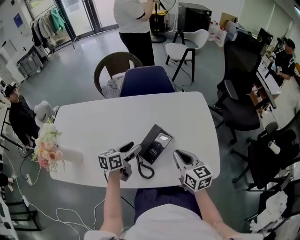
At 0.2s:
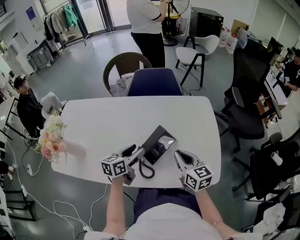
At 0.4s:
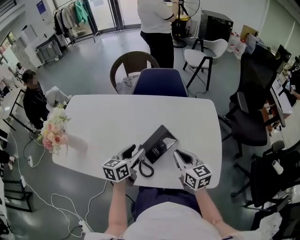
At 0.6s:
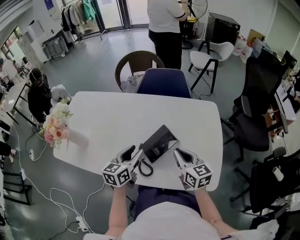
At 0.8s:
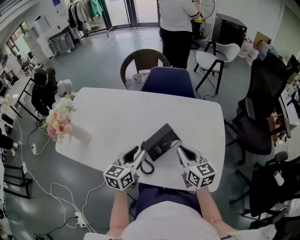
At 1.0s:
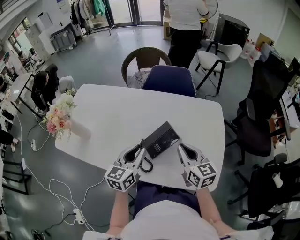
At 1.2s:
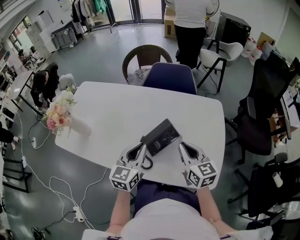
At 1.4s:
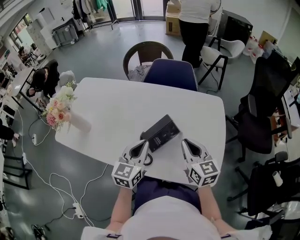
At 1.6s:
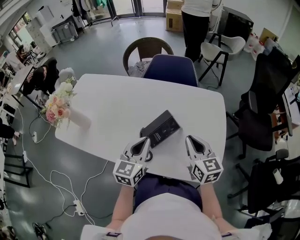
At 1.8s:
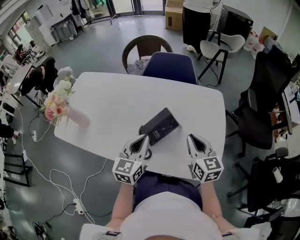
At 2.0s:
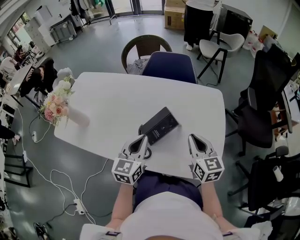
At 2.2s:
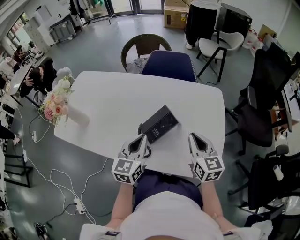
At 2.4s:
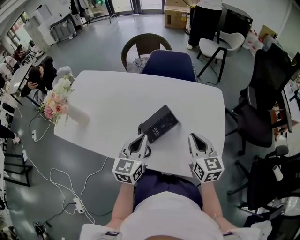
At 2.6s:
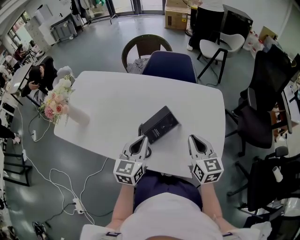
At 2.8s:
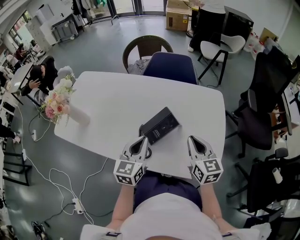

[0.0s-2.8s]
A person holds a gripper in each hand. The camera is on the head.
0.0s to 1.4s: The left gripper heads upward and backward, covering about 10 cm, changes its angle by roughly 40 degrees, and closes its fingers.
1.4s to 2.8s: There are only small adjustments of the grippers.

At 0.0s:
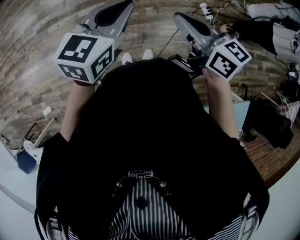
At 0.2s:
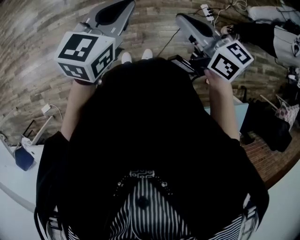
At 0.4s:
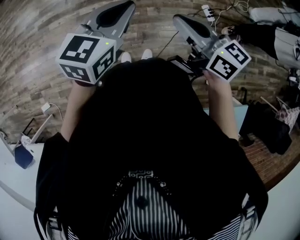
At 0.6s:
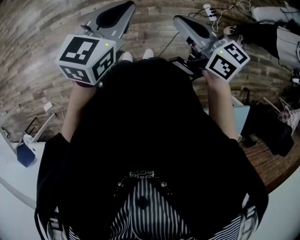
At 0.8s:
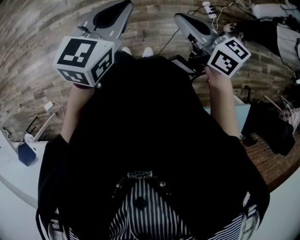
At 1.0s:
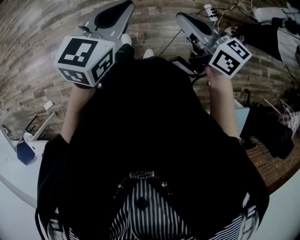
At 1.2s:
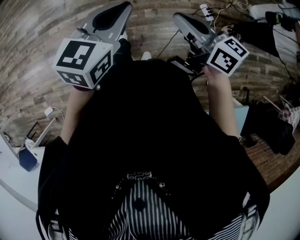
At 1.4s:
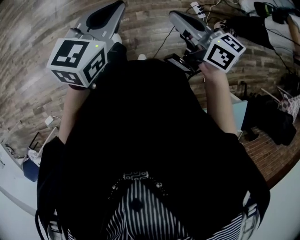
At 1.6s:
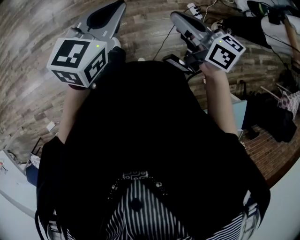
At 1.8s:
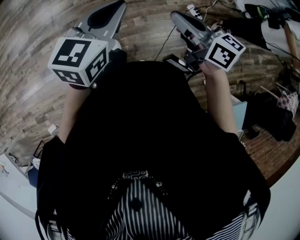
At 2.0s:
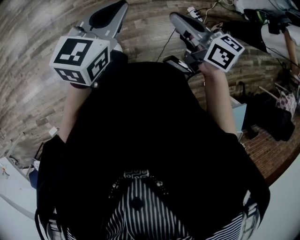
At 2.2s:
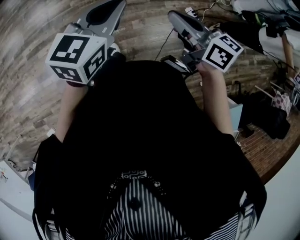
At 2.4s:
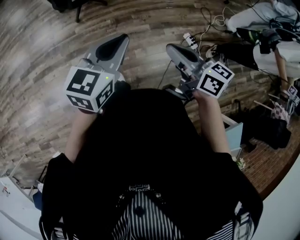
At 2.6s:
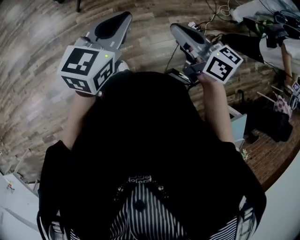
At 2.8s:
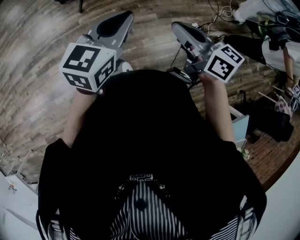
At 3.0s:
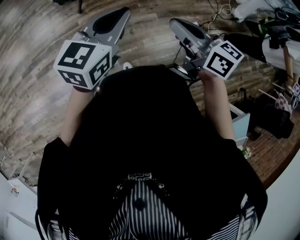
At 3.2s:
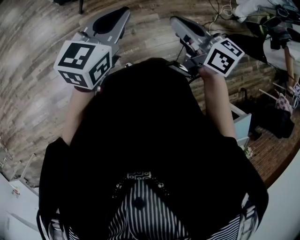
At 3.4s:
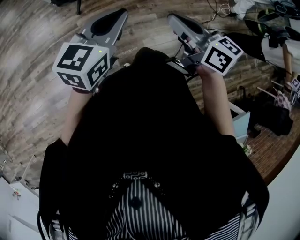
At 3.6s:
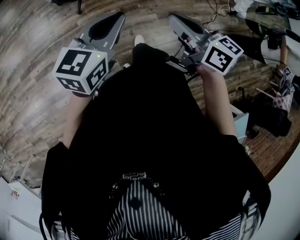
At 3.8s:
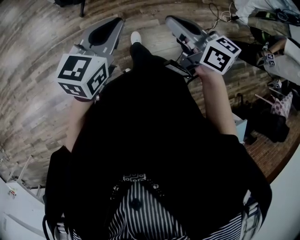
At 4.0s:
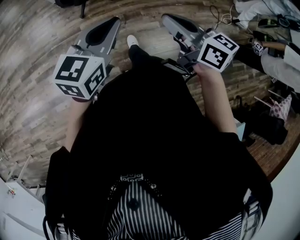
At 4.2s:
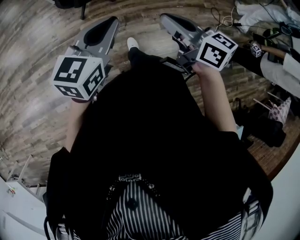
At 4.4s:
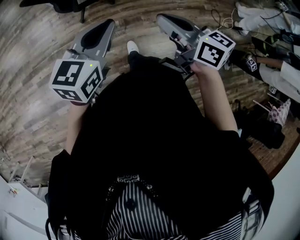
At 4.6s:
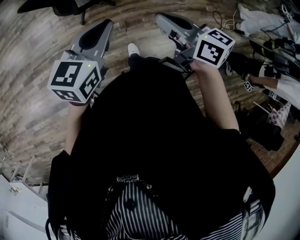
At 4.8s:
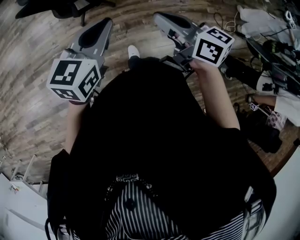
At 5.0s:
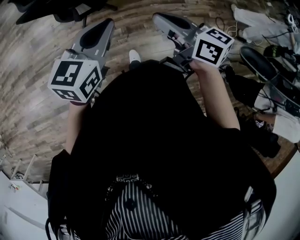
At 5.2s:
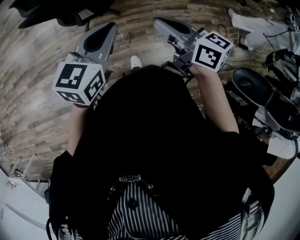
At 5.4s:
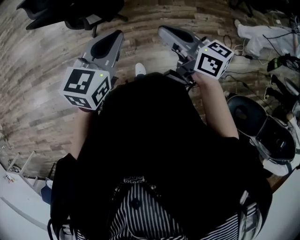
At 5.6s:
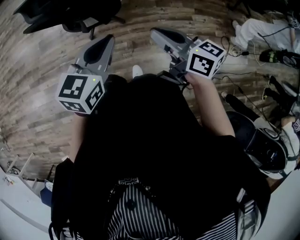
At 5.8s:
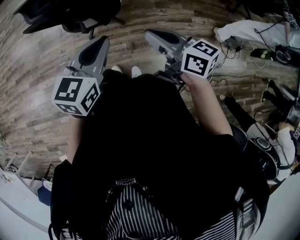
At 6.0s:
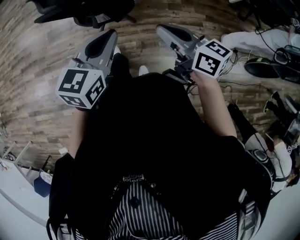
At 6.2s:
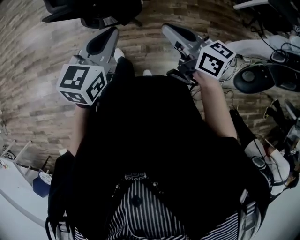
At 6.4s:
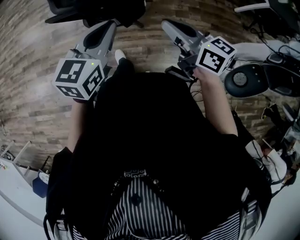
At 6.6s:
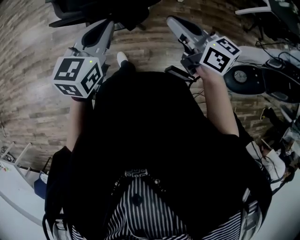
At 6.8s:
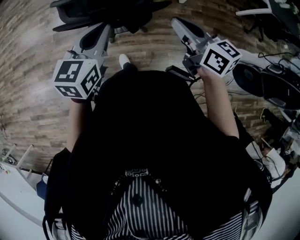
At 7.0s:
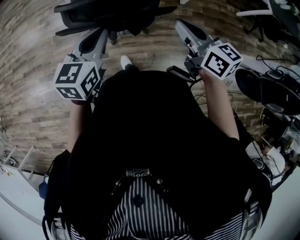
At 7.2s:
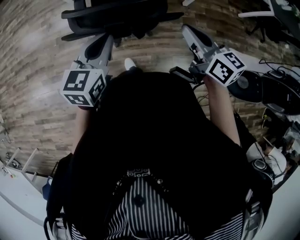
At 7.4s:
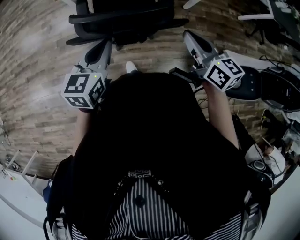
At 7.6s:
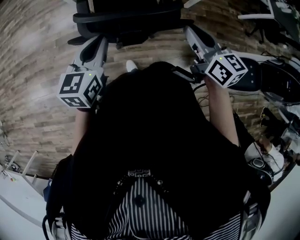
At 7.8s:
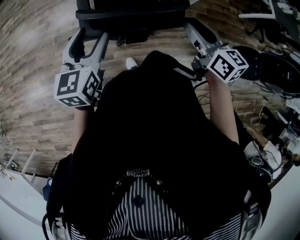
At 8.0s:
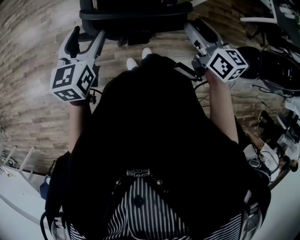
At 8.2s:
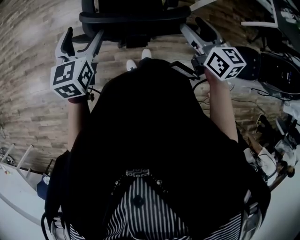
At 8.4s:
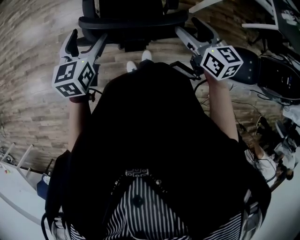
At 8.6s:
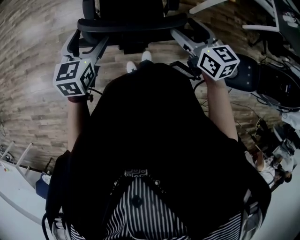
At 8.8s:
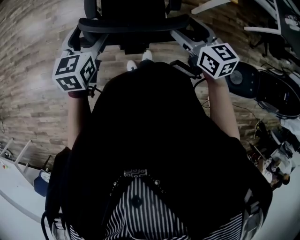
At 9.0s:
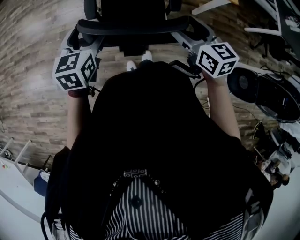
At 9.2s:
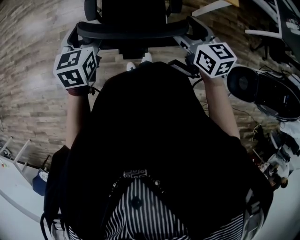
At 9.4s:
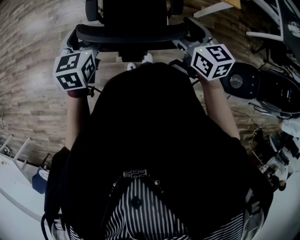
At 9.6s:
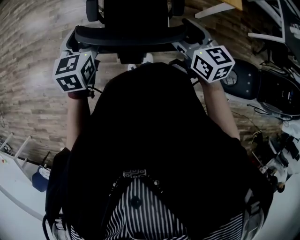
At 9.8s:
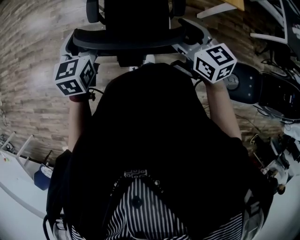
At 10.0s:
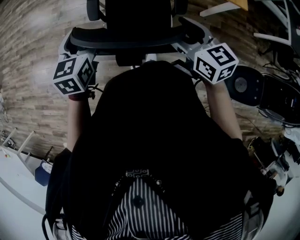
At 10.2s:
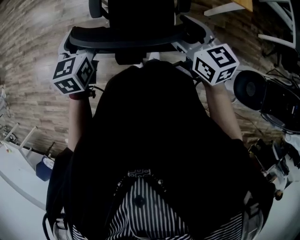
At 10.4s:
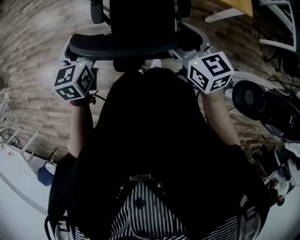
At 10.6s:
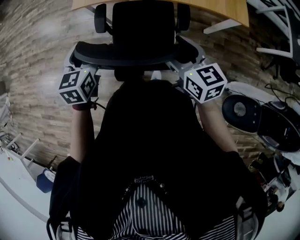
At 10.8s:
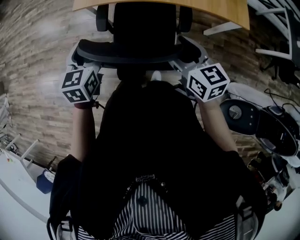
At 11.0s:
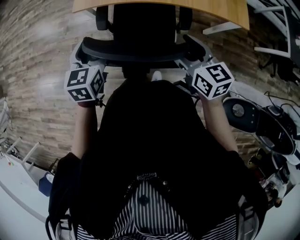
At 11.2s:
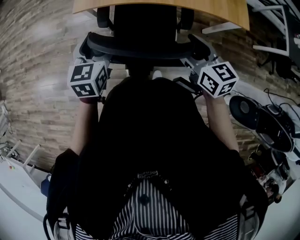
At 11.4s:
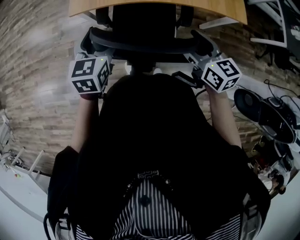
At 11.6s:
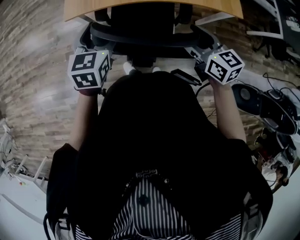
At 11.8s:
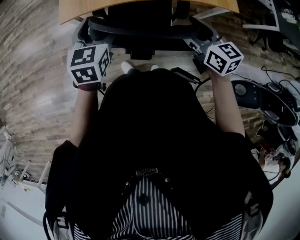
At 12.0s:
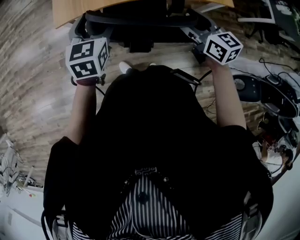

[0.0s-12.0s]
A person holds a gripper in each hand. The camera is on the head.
0.0s to 1.6s: Both grippers travel together to the right and forward, roughly 15 cm.
1.6s to 3.0s: The two grippers travel together, forward and to the left, some 40 cm.
3.0s to 4.4s: The two grippers go approximately 20 cm forward and to the left.
4.4s to 6.0s: The left gripper is displaced backward by some 5 cm.
6.0s to 7.6s: Both grippers are carried forward and to the left, approximately 50 cm.
7.6s to 9.0s: The two grippers go approximately 20 cm forward. The right gripper opens its fingers; the left gripper opens its fingers.
9.0s to 10.4s: The right gripper travels forward by some 5 cm; the left gripper changes place by some 5 cm.
10.4s to 12.0s: Both grippers move forward, some 20 cm.

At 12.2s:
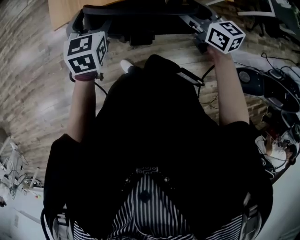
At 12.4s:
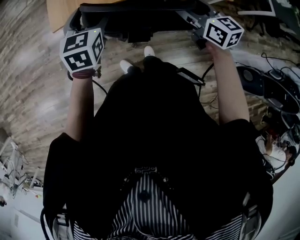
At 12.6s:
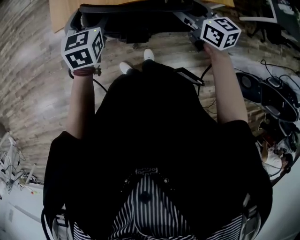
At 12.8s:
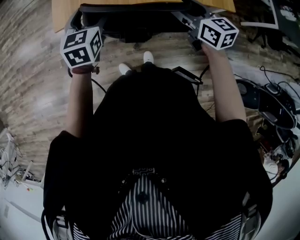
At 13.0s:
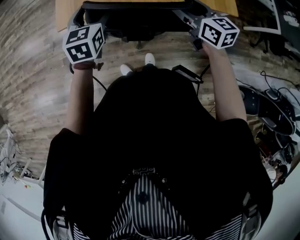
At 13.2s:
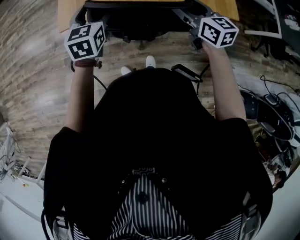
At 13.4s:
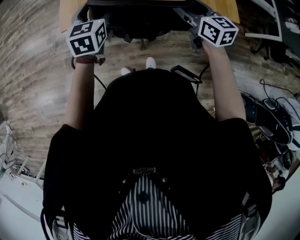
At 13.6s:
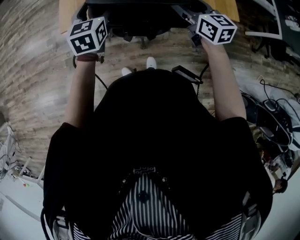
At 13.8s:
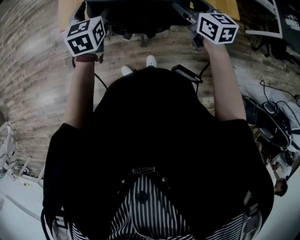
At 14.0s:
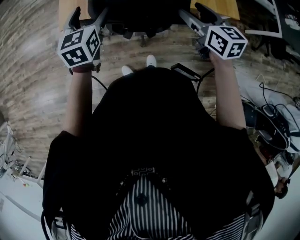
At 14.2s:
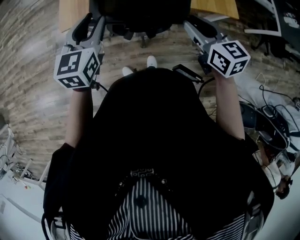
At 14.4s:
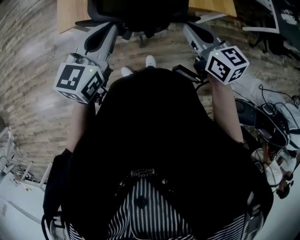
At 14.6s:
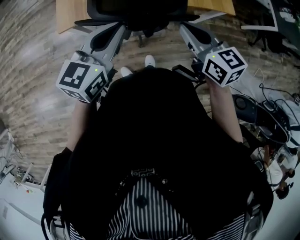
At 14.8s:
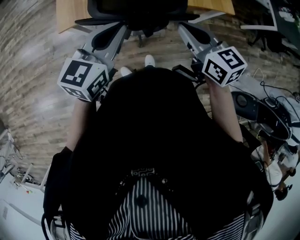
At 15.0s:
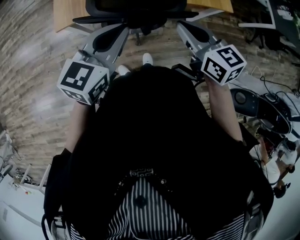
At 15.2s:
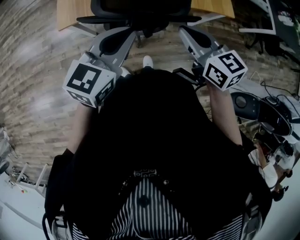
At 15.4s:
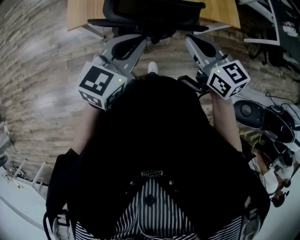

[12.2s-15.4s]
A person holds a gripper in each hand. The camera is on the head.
12.2s to 13.8s: The right gripper is displaced forward and to the right by about 15 cm, while the left gripper travels forward by roughly 10 cm.
13.8s to 15.4s: The left gripper travels backward and upward by roughly 20 cm, rotates roughly 30 degrees, and closes its fingers, while the right gripper travels backward, to the left and upward by about 20 cm, and closes.

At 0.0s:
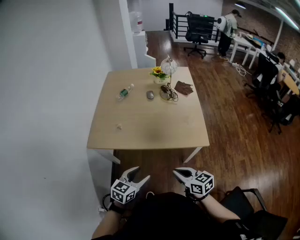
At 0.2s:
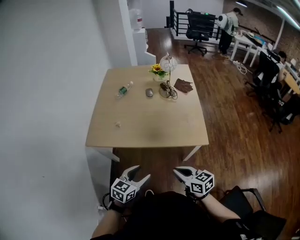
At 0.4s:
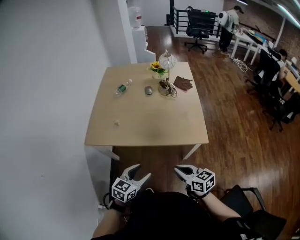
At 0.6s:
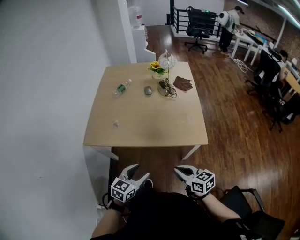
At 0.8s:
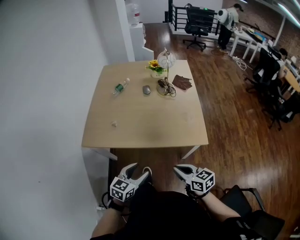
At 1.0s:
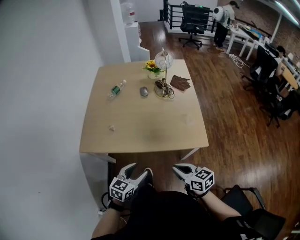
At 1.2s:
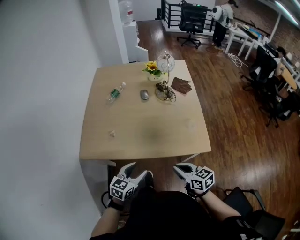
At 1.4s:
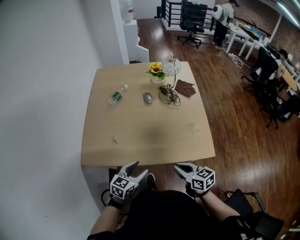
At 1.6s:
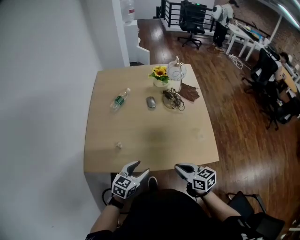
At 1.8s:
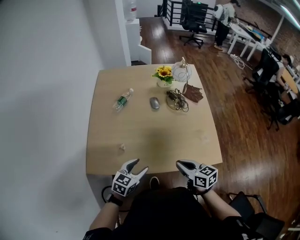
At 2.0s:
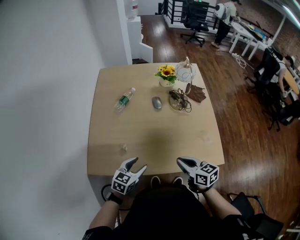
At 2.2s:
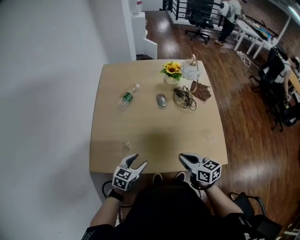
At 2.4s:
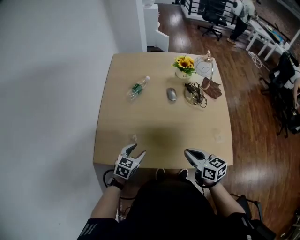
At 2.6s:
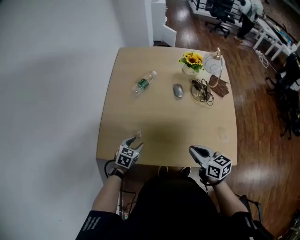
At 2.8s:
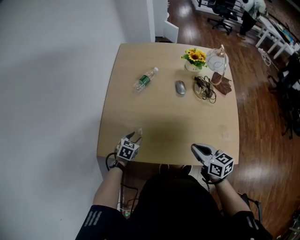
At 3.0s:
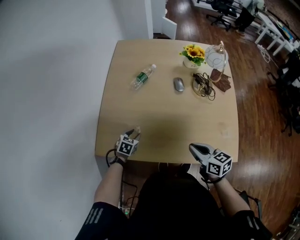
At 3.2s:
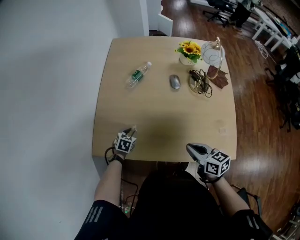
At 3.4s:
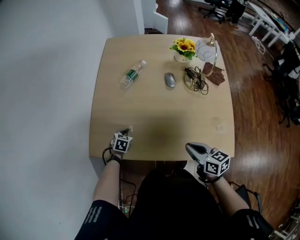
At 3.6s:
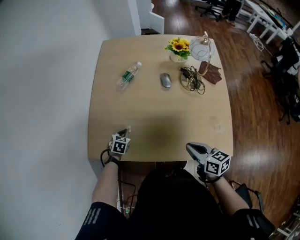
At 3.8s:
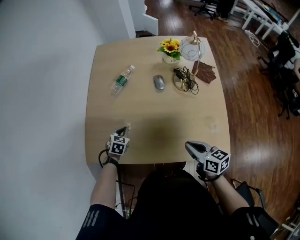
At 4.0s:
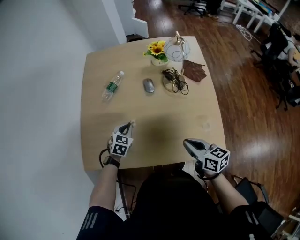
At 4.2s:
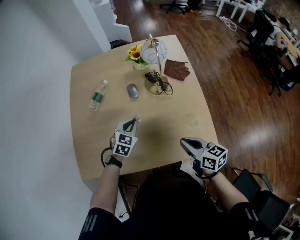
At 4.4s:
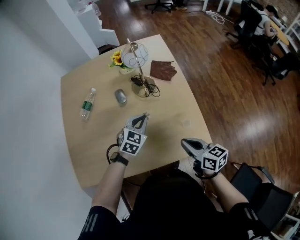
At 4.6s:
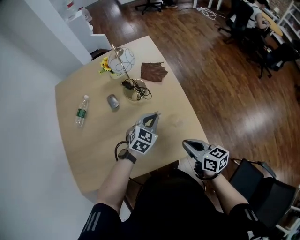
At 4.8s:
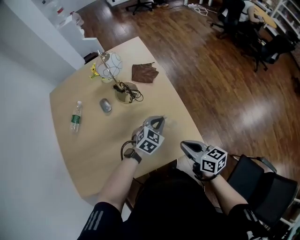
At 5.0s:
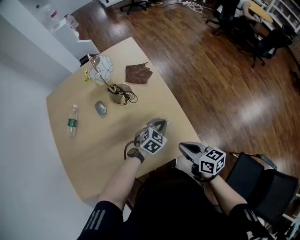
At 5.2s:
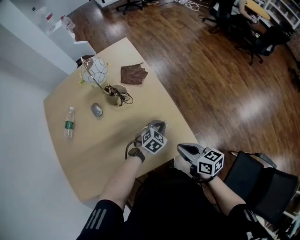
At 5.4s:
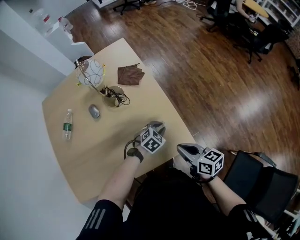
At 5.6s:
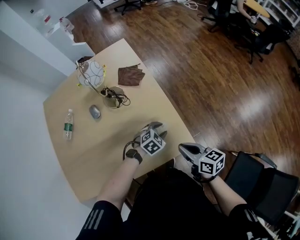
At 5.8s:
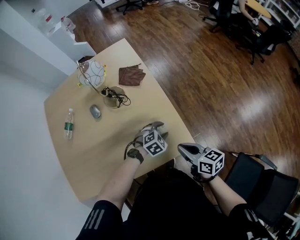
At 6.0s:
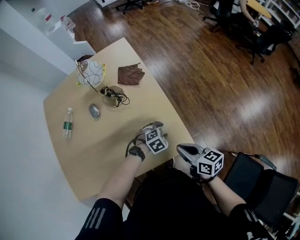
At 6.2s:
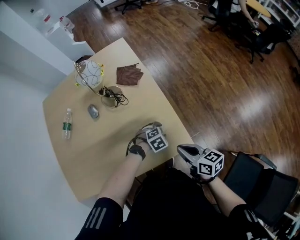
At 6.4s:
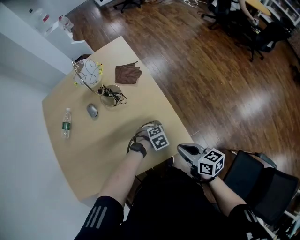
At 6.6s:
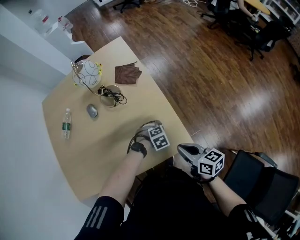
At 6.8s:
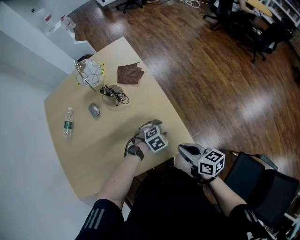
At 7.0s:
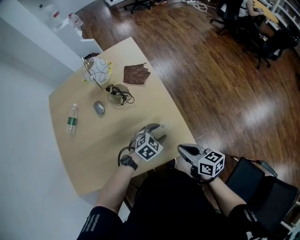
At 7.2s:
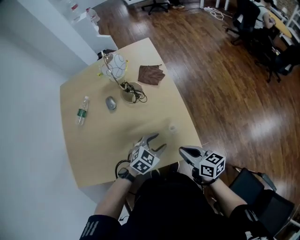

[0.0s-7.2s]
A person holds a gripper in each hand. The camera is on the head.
0.0s to 1.4s: The grippers both shift forward by about 20 cm.
1.4s to 2.8s: The right gripper moves forward, about 15 cm. Meanwhile the left gripper shifts about 30 cm forward, to the left and downward, and rotates some 30 degrees.
2.8s to 4.4s: The right gripper goes about 20 cm to the right, and swivels about 20 degrees. Meanwhile the left gripper shifts roughly 40 cm to the right, changes its angle by some 30 degrees, and closes up.
4.4s to 5.8s: The right gripper heads to the right, covering some 15 cm. The left gripper travels to the right and downward by some 30 cm, turns by about 40 degrees, and opens up.
5.8s to 7.2s: The left gripper shifts some 15 cm upward, to the left and backward, and turns by some 20 degrees.
